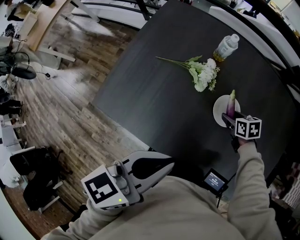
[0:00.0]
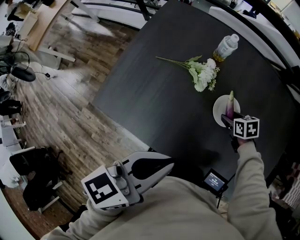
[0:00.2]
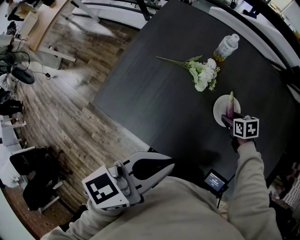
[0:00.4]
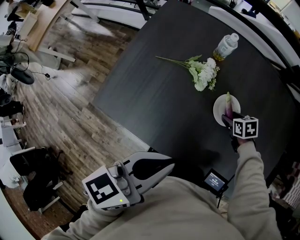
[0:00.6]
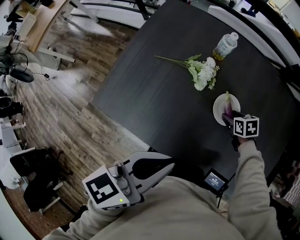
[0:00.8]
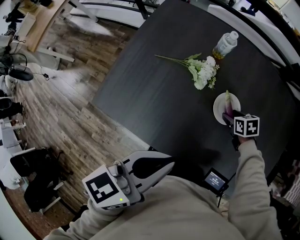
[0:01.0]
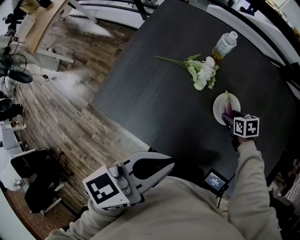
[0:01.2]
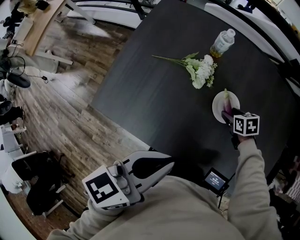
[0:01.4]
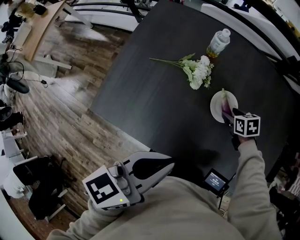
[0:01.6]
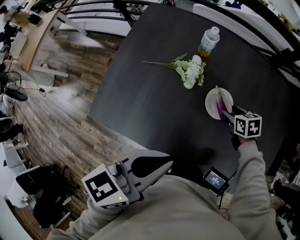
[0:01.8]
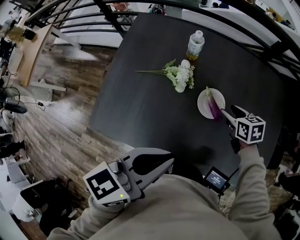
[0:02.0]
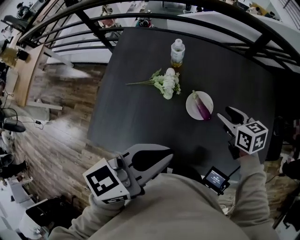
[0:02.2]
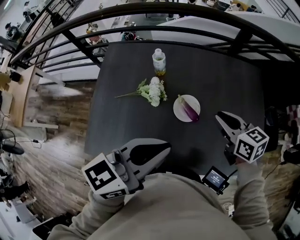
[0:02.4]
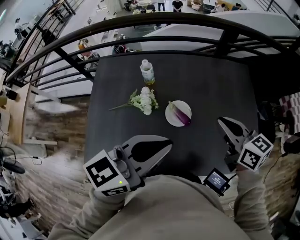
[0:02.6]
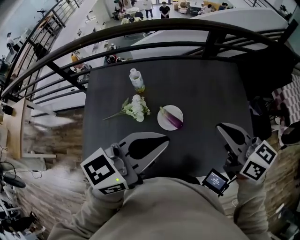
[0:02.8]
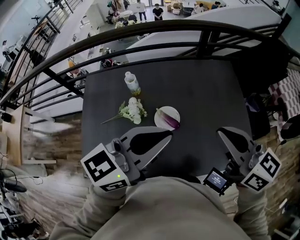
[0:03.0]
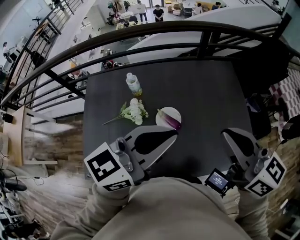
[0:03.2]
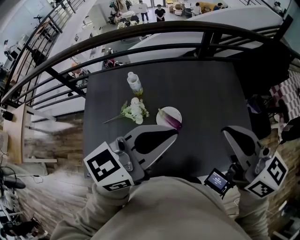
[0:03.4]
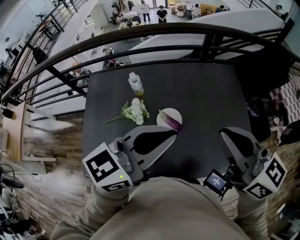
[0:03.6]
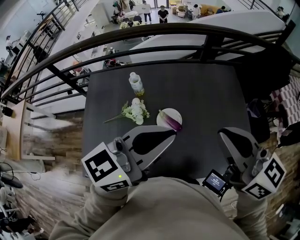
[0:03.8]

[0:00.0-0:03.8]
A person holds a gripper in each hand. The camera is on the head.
0:00.0 to 0:01.2: There are only small adjustments of the grippers.
0:01.2 to 0:02.6: The left gripper moves approximately 15 cm, and rotates about 40 degrees. The right gripper moves upward, approximately 30 cm, points its fingers roughly 40 degrees further upward, and closes.
0:02.6 to 0:03.8: The left gripper travels upward by about 5 cm. The right gripper travels upward by roughly 15 cm.

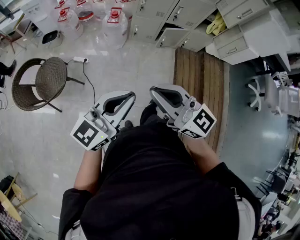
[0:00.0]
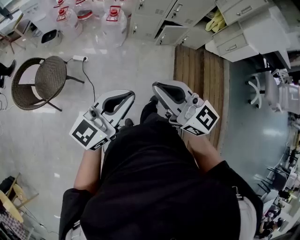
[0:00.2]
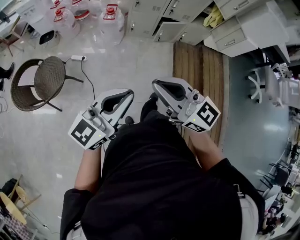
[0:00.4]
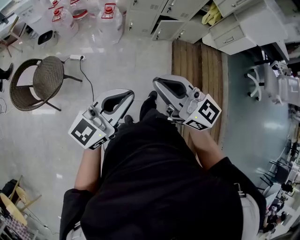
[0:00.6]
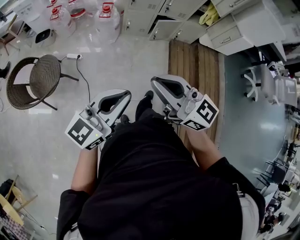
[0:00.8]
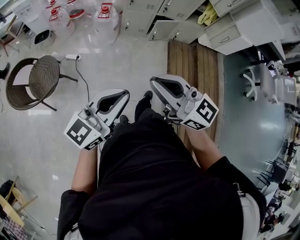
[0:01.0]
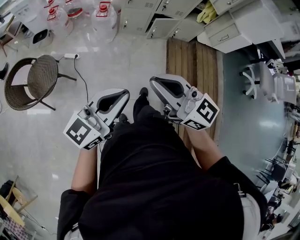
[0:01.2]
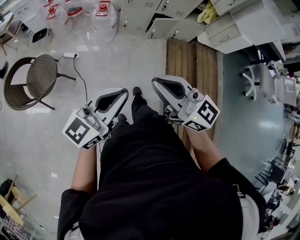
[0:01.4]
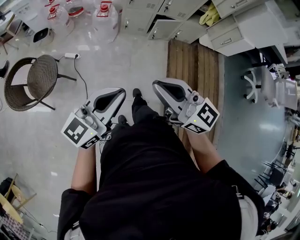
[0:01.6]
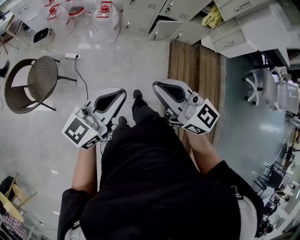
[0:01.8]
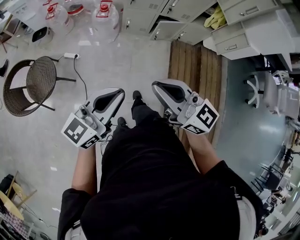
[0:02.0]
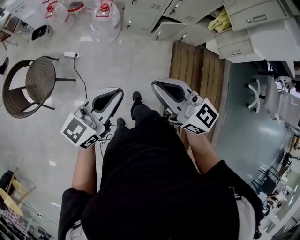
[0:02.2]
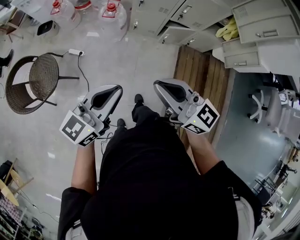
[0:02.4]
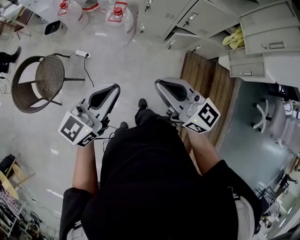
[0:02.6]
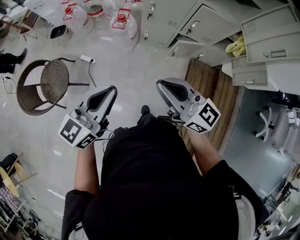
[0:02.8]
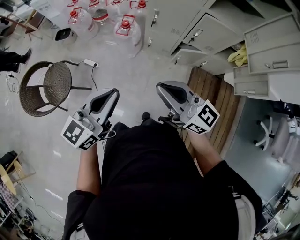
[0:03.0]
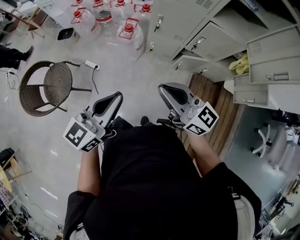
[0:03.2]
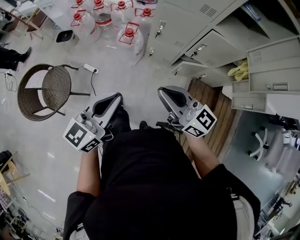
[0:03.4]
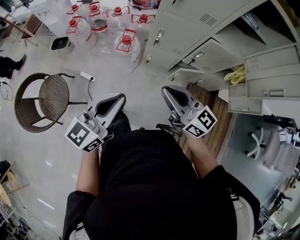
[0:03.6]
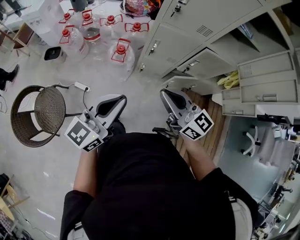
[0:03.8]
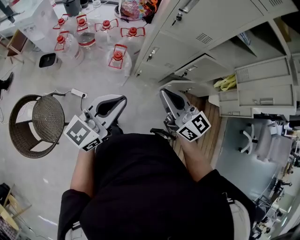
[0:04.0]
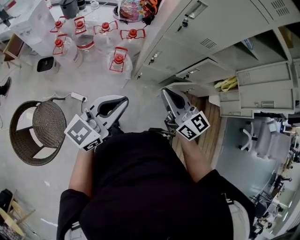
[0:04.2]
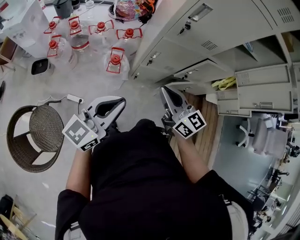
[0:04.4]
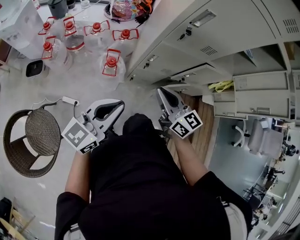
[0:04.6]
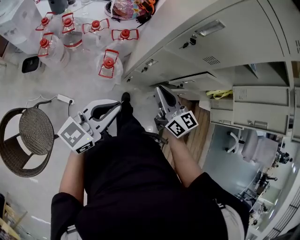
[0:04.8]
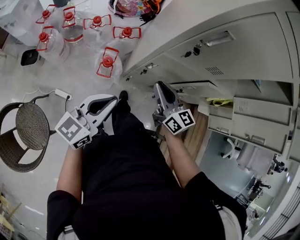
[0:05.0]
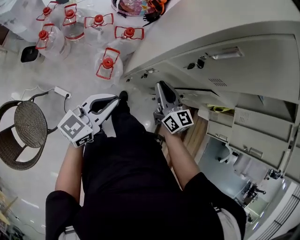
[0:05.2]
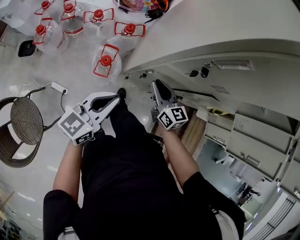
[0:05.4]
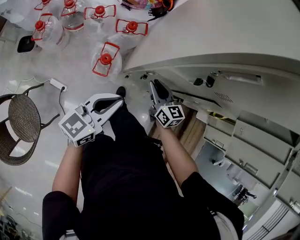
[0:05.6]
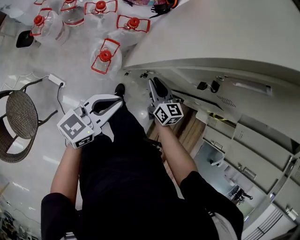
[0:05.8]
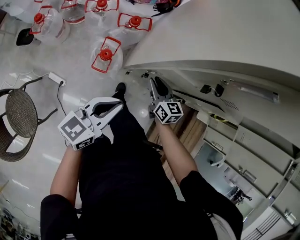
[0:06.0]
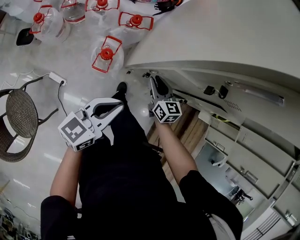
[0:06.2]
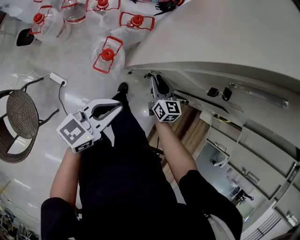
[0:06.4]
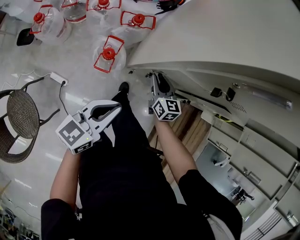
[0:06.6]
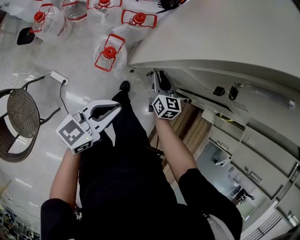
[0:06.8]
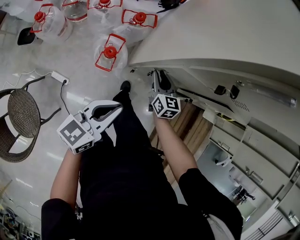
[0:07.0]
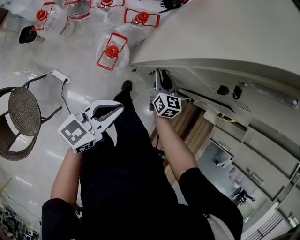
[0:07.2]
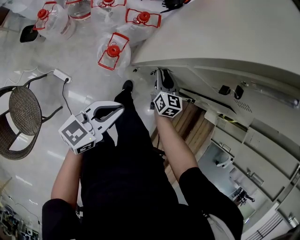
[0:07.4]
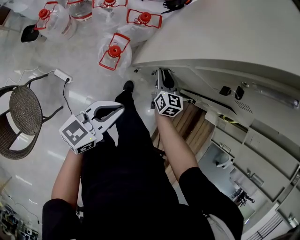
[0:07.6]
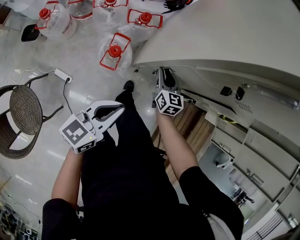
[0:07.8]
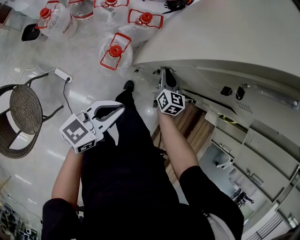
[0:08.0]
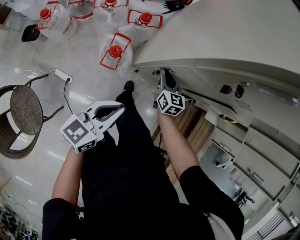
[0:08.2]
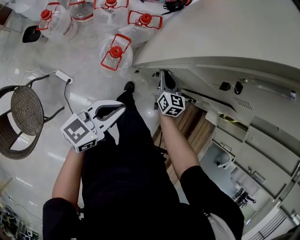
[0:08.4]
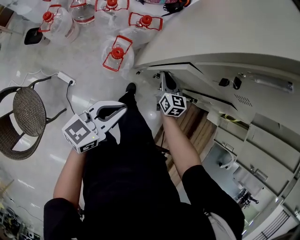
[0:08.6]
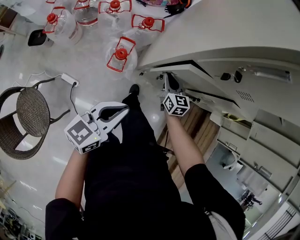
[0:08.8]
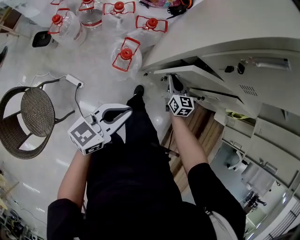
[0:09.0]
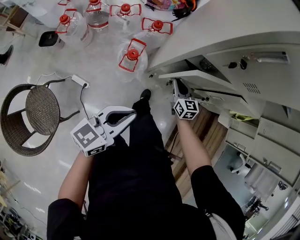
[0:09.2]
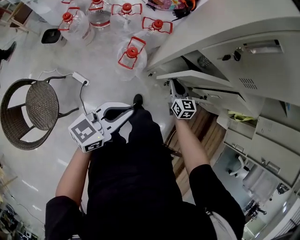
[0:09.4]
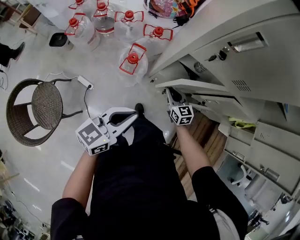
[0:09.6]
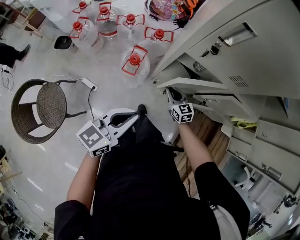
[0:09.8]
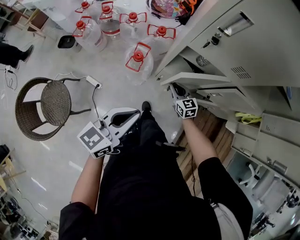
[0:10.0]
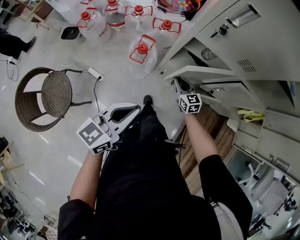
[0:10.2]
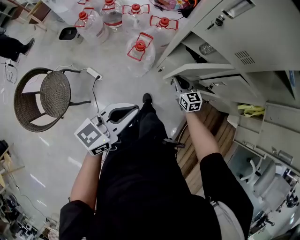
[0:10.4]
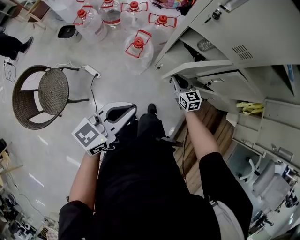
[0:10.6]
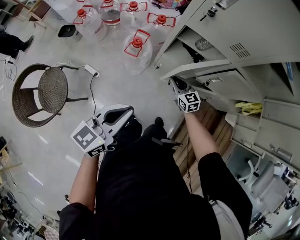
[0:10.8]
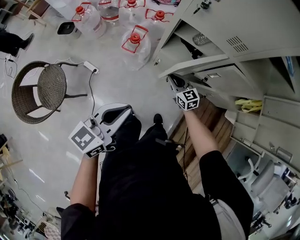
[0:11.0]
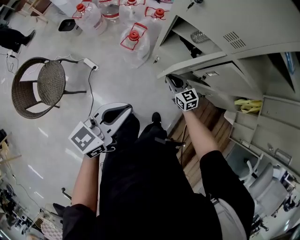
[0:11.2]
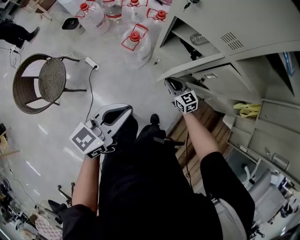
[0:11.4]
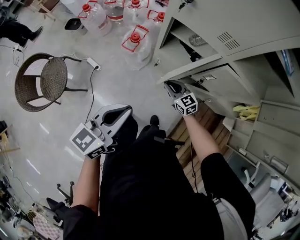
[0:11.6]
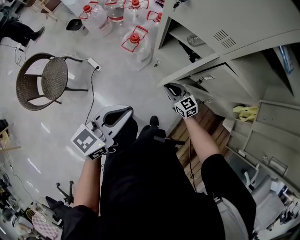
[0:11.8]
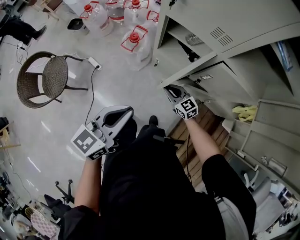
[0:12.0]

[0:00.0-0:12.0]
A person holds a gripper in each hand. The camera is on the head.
0:00.0 to 0:01.6: The right gripper is displaced to the right by approximately 5 cm.
0:01.6 to 0:03.0: The grippers both shift forward by approximately 30 cm. The left gripper rotates approximately 20 degrees.
0:03.0 to 0:04.4: Both grippers travel together forward and to the left, about 30 cm. The right gripper swivels roughly 30 degrees.
0:04.4 to 0:06.0: The left gripper travels forward and downward by approximately 30 cm. Meanwhile the right gripper travels downward and forward by roughly 40 cm, swivels approximately 20 degrees, and opens up.
0:06.0 to 0:07.6: The grippers make only small movements.
0:07.6 to 0:09.0: The left gripper shifts approximately 5 cm backward.
0:09.0 to 0:10.4: The right gripper heads backward, covering roughly 10 cm, and swivels approximately 20 degrees. The left gripper goes roughly 15 cm backward, upward and to the right.
0:10.4 to 0:12.0: The right gripper travels backward and to the right by approximately 15 cm, and changes its angle by about 30 degrees. The left gripper is displaced to the right and backward by approximately 15 cm.

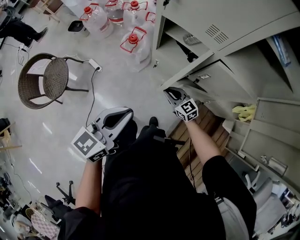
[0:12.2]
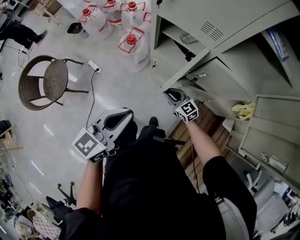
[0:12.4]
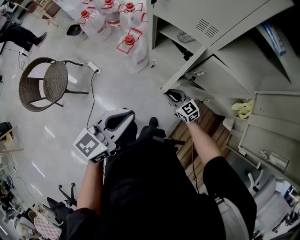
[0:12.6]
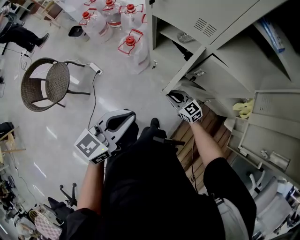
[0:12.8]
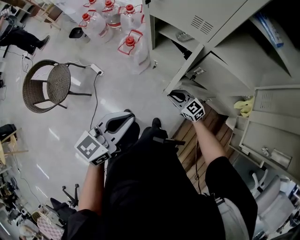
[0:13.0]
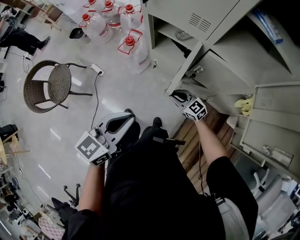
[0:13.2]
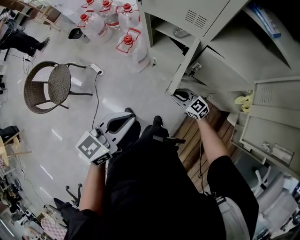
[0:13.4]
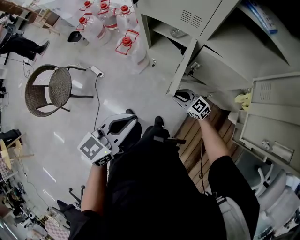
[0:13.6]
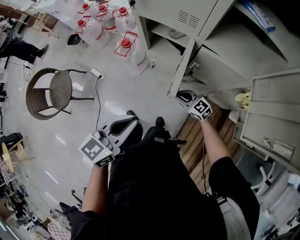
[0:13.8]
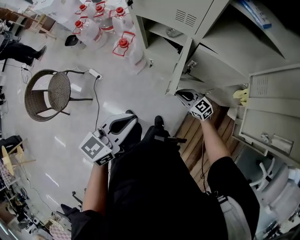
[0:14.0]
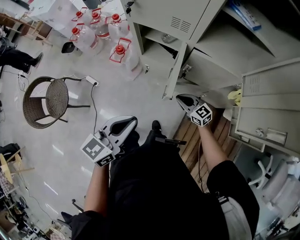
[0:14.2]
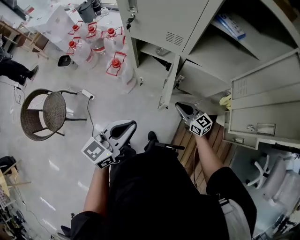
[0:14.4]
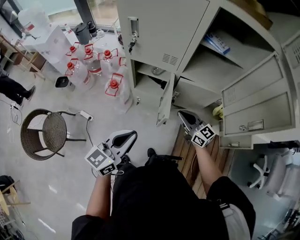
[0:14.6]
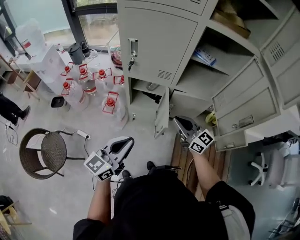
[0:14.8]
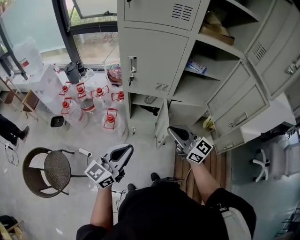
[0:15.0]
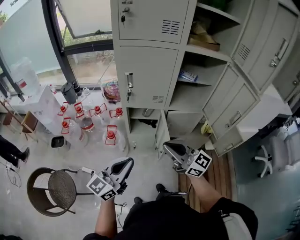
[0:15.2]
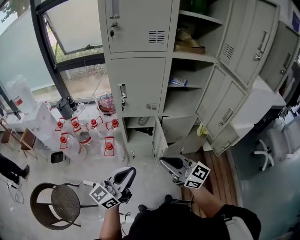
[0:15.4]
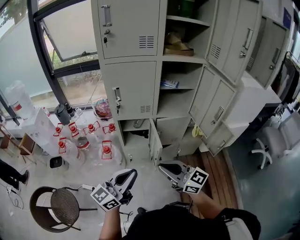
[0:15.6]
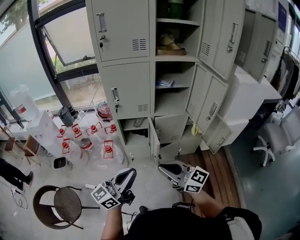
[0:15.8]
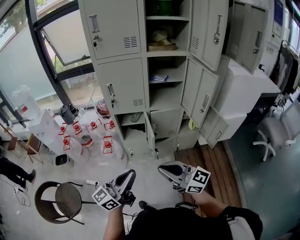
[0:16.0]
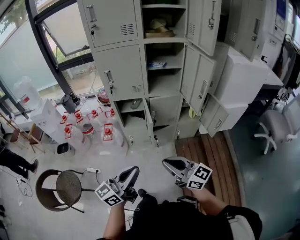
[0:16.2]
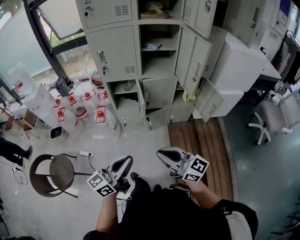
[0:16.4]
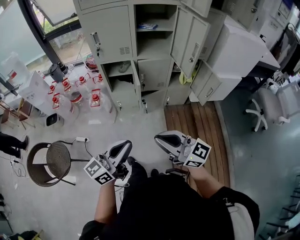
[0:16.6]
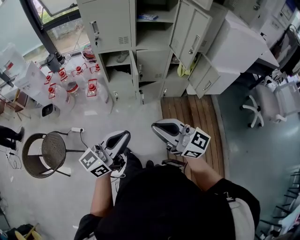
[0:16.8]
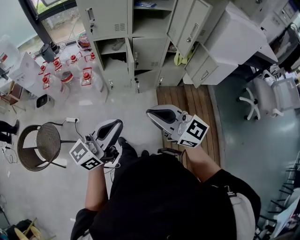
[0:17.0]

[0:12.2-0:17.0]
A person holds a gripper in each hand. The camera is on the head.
0:12.2 to 0:13.8: The right gripper goes some 10 cm to the right and backward, while the left gripper heads to the right, covering approximately 5 cm.
0:13.8 to 0:15.4: The right gripper is displaced upward by roughly 50 cm, and tilts its fingers about 30 degrees upward, while the left gripper travels upward by approximately 20 cm, and angles its fingers upward, by roughly 30 degrees.
0:15.4 to 0:17.0: The left gripper goes some 25 cm backward and to the right, while the right gripper travels backward by roughly 25 cm.

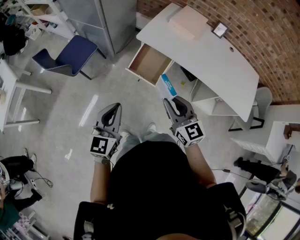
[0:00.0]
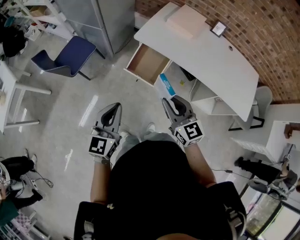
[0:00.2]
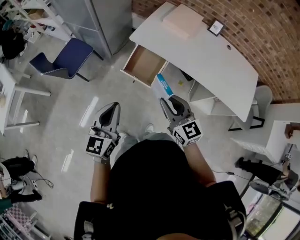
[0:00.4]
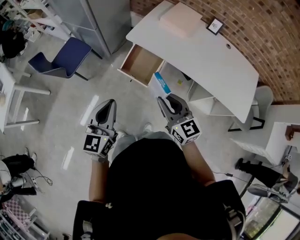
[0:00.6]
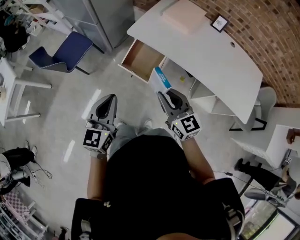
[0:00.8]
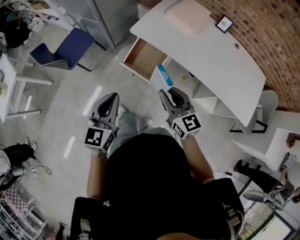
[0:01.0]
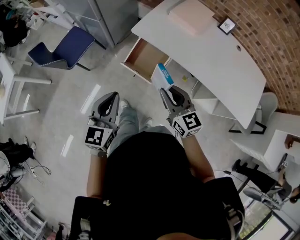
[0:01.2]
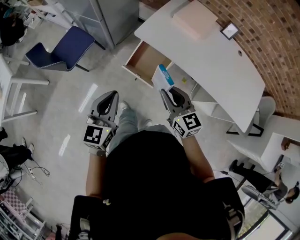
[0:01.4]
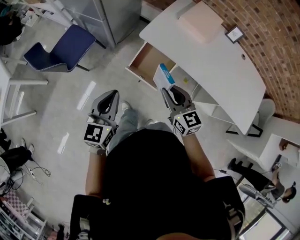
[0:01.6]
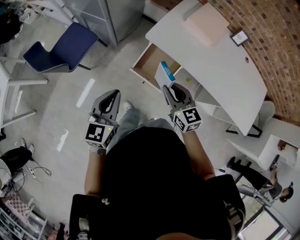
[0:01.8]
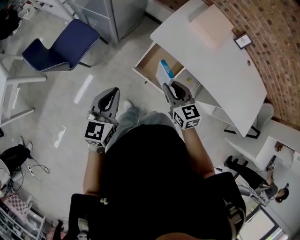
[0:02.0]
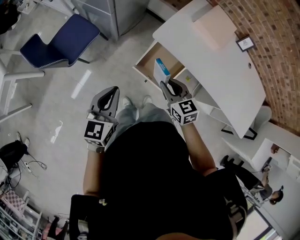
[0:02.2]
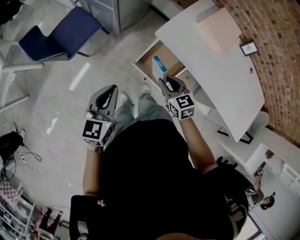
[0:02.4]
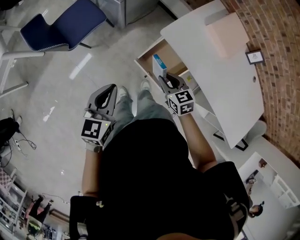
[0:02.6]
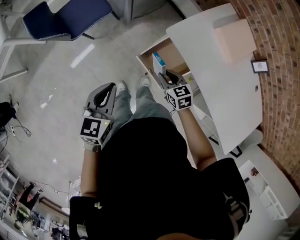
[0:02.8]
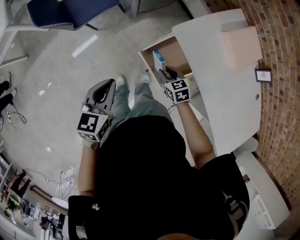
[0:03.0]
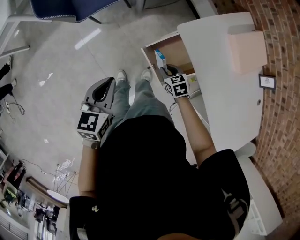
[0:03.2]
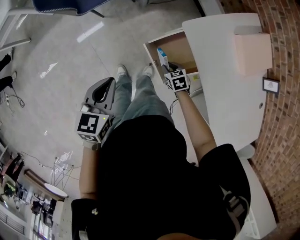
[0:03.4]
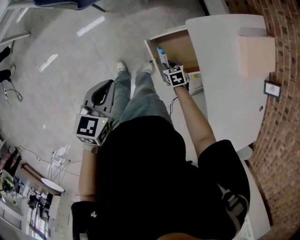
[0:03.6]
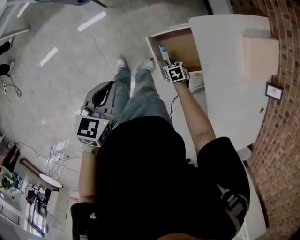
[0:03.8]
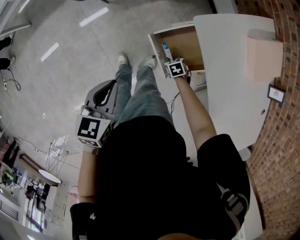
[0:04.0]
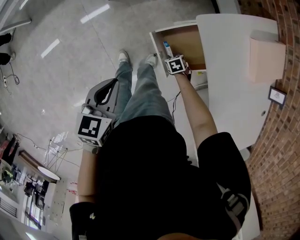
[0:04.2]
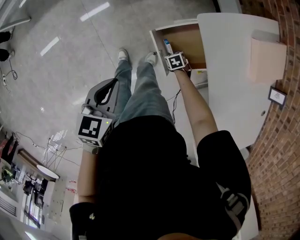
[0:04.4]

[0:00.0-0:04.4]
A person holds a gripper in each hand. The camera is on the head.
0:00.0 to 0:01.4: Both grippers move forward, roughly 10 cm.
0:01.4 to 0:03.0: The left gripper moves forward, downward and to the left, roughly 20 cm, and turns by some 30 degrees; the right gripper is displaced downward and forward by some 30 cm, and tilts its fingers about 40 degrees downward.
0:03.0 to 0:04.4: The left gripper goes some 5 cm downward. Meanwhile the right gripper moves downward, approximately 25 cm, and changes its angle by roughly 30 degrees.
